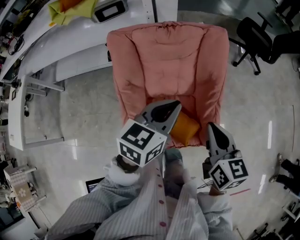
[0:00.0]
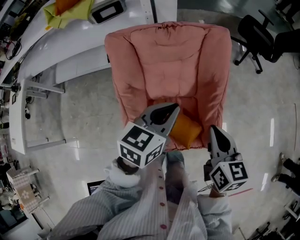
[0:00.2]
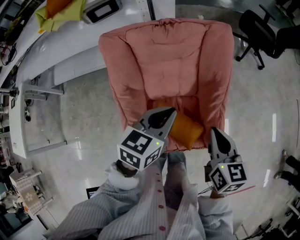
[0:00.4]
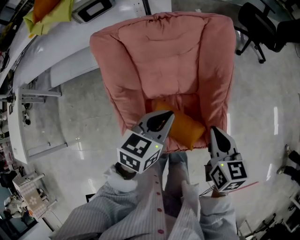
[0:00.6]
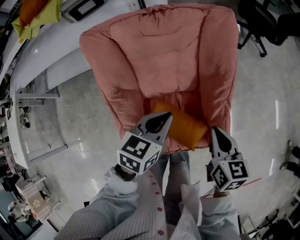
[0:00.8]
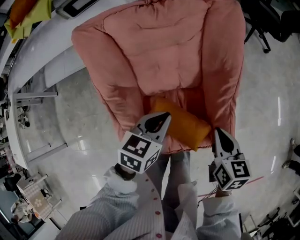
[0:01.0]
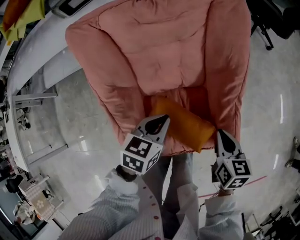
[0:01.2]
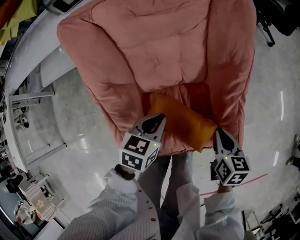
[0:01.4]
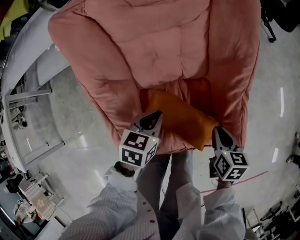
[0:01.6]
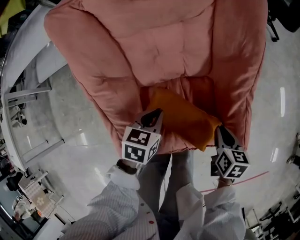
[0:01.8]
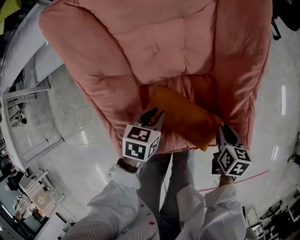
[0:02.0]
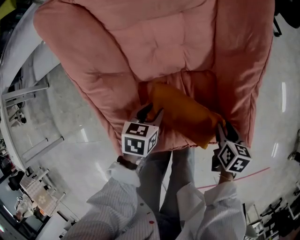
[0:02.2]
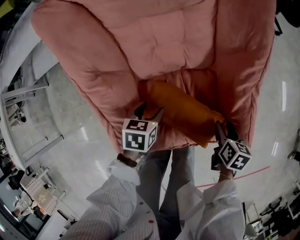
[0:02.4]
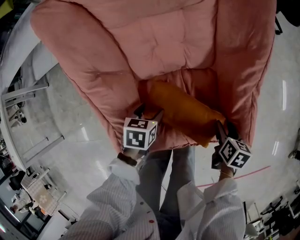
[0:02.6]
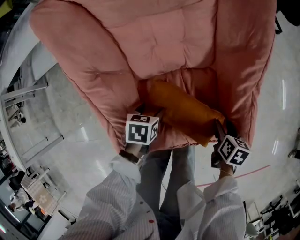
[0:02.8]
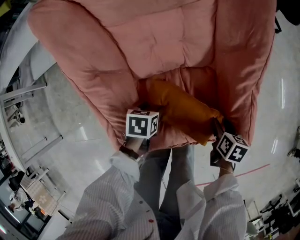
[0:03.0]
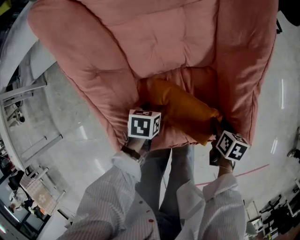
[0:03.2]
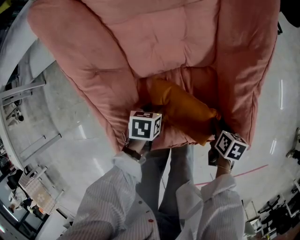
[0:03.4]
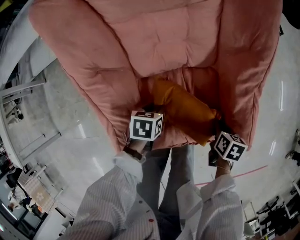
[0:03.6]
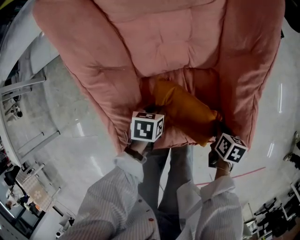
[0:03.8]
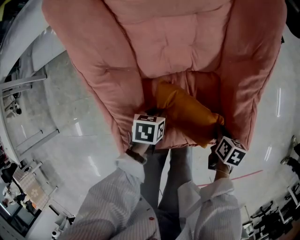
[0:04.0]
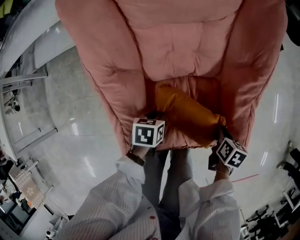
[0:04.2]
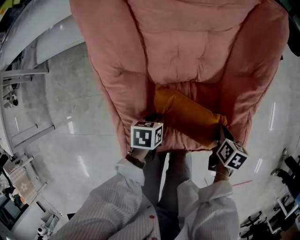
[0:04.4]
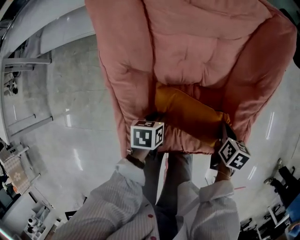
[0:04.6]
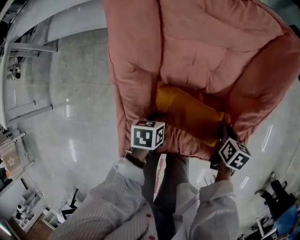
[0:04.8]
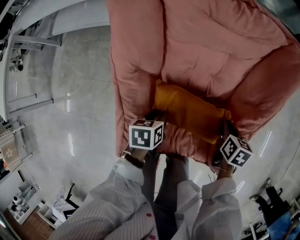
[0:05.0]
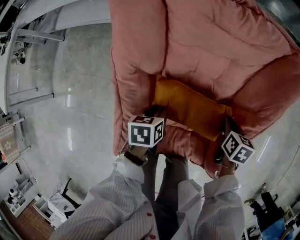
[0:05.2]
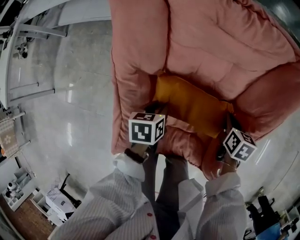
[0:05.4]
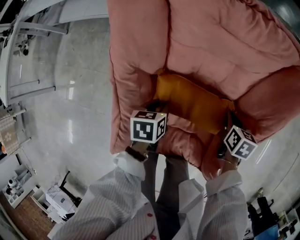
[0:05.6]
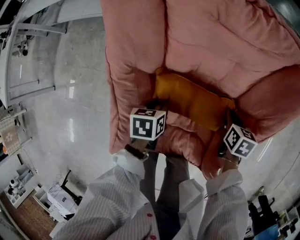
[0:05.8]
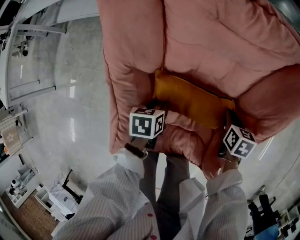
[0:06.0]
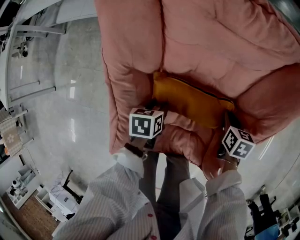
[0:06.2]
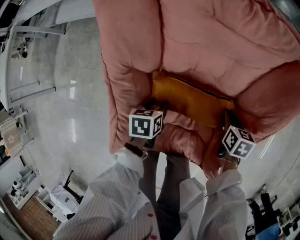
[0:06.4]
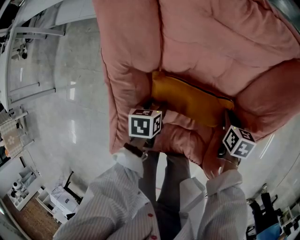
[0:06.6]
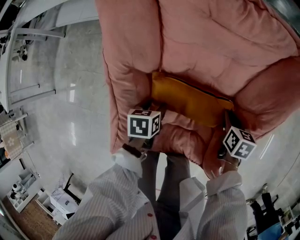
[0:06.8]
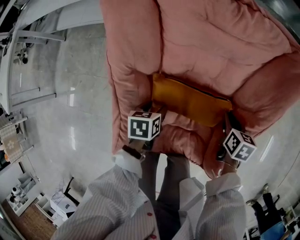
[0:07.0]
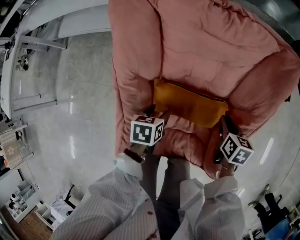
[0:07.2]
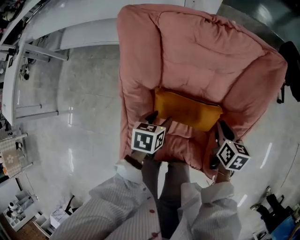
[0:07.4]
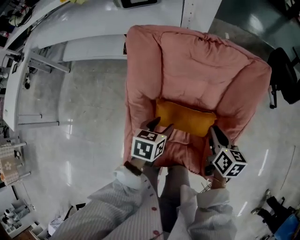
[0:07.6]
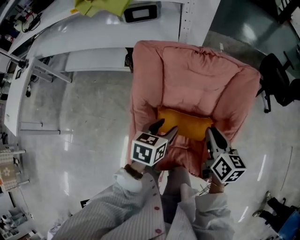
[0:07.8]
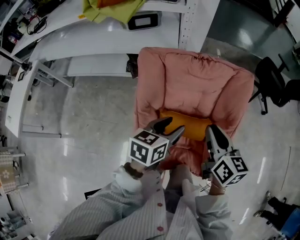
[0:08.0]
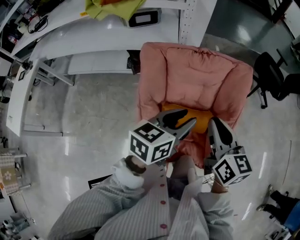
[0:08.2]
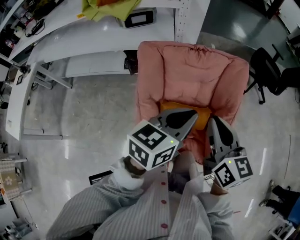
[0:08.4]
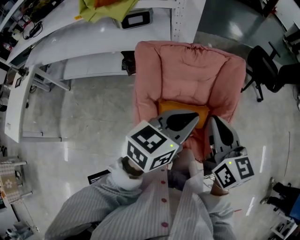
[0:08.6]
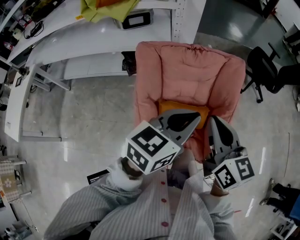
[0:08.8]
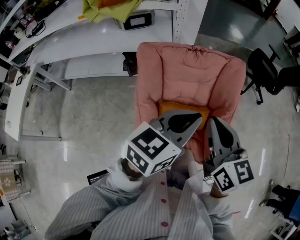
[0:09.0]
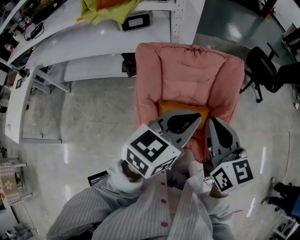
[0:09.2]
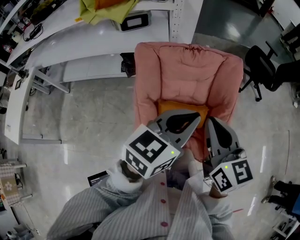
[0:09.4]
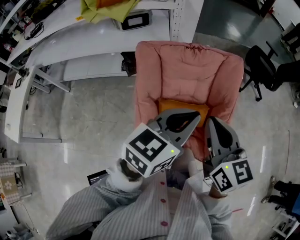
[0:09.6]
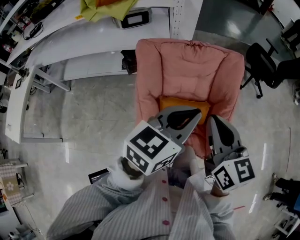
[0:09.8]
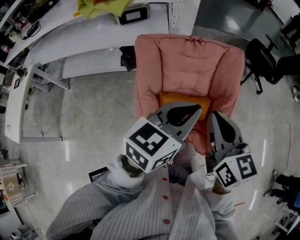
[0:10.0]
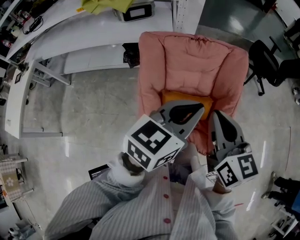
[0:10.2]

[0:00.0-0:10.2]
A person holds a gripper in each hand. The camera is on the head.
0:00.0 to 0:01.4: The grippers both shift downward by approximately 30 cm. The left gripper turns by some 20 degrees; the right gripper turns by some 30 degrees.
0:01.4 to 0:03.0: The two grippers go about 15 cm downward. The left gripper changes its angle by some 30 degrees, and opens its fingers; the right gripper rotates approximately 20 degrees, and opens its fingers.
0:03.0 to 0:04.4: The left gripper closes. Meanwhile the right gripper travels upward and forward by roughly 10 cm, and closes its fingers.
0:04.4 to 0:05.8: The left gripper shifts about 10 cm forward, while the right gripper travels forward by roughly 20 cm, and turns by approximately 30 degrees.
0:05.8 to 0:07.2: The left gripper shifts by about 5 cm, and opens. The right gripper travels upward by some 5 cm.
0:07.2 to 0:08.8: The grippers both shift upward by about 40 cm. The right gripper angles its fingers upward, by about 40 degrees. The left gripper tilts its fingers some 50 degrees upward, and closes its fingers.
0:08.8 to 0:10.2: The grippers stay close to where they were, moving slightly.

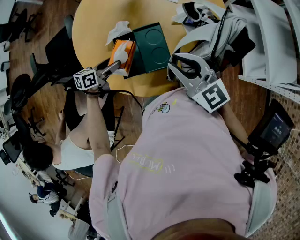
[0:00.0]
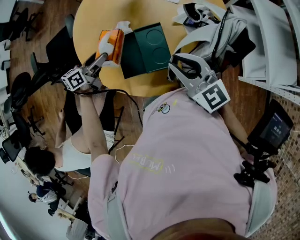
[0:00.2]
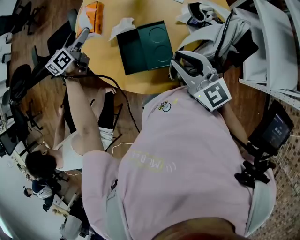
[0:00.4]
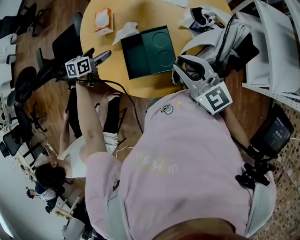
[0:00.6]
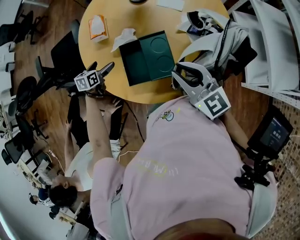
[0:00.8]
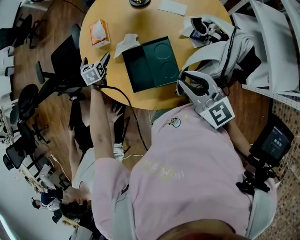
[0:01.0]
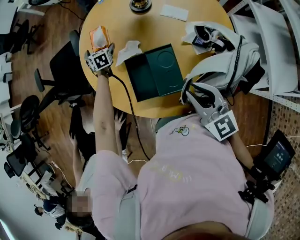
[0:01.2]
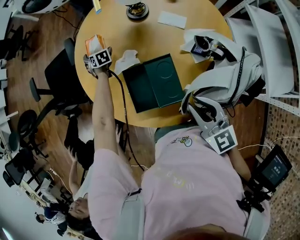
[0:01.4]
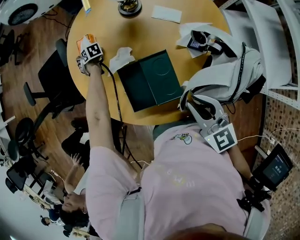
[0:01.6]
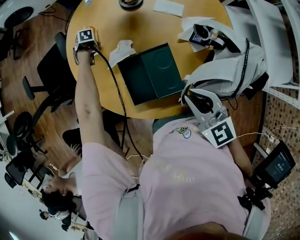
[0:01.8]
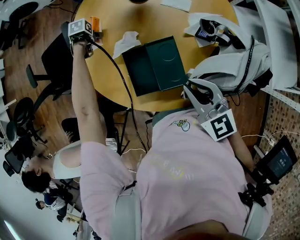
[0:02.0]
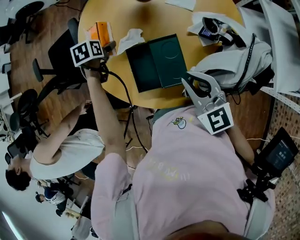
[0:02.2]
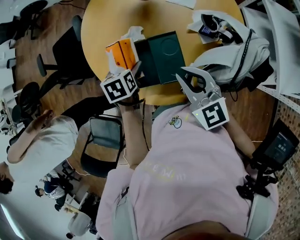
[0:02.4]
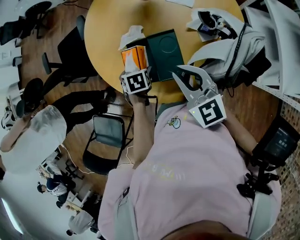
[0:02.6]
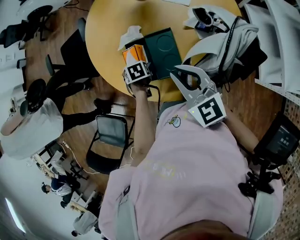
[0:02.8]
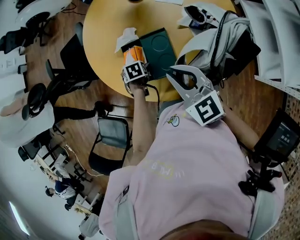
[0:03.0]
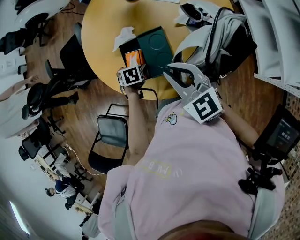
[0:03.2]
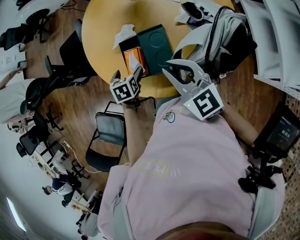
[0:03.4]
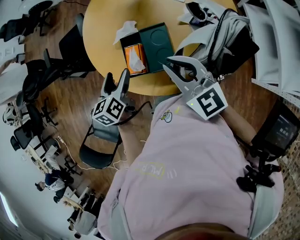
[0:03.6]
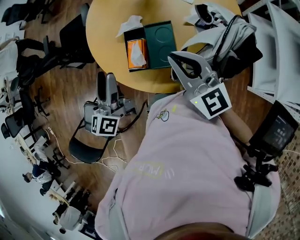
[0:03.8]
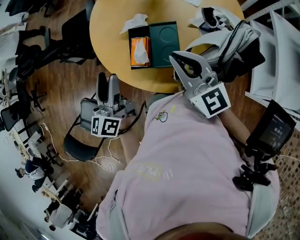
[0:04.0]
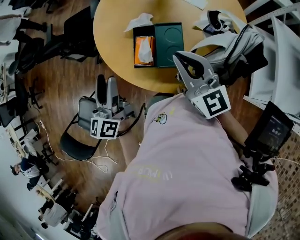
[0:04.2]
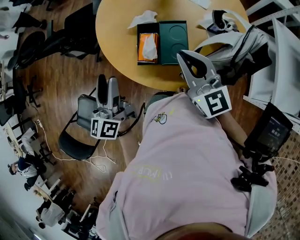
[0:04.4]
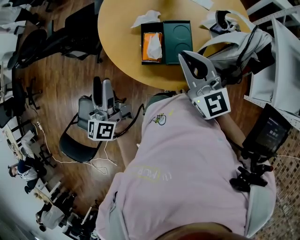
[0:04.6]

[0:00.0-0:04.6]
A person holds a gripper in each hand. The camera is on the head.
0:00.0 to 0:01.6: The left gripper changes place by approximately 40 cm, angles its fingers downward, by roughly 30 degrees, and opens up.
0:01.6 to 0:03.0: The left gripper moves roughly 20 cm upward and comes back.
0:03.0 to 0:04.6: The right gripper ends up roughly 10 cm from where it was; the left gripper is displaced upward by approximately 30 cm, and points its fingers about 80 degrees further upward.

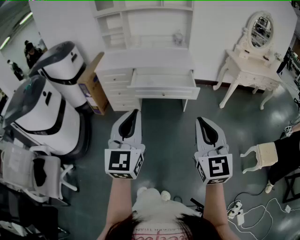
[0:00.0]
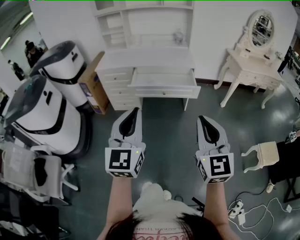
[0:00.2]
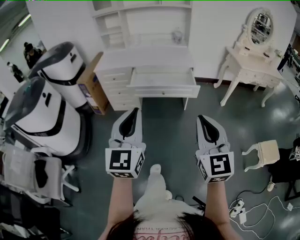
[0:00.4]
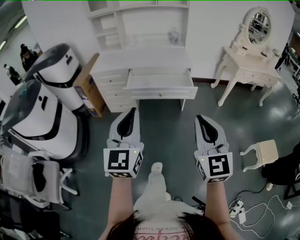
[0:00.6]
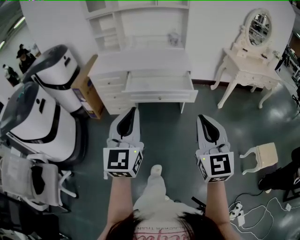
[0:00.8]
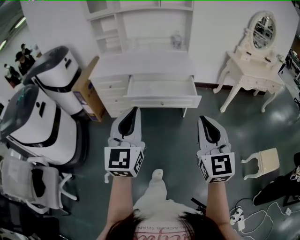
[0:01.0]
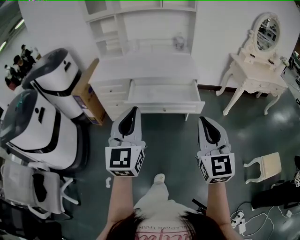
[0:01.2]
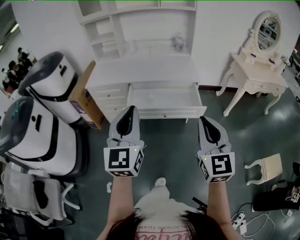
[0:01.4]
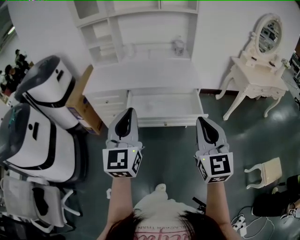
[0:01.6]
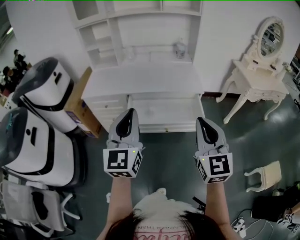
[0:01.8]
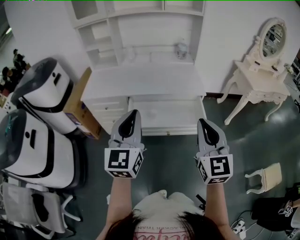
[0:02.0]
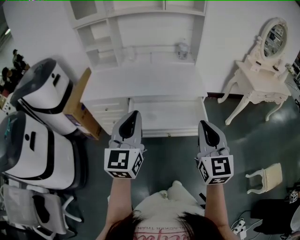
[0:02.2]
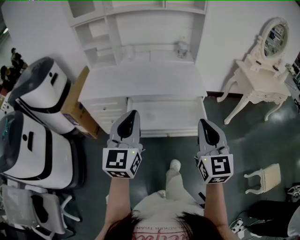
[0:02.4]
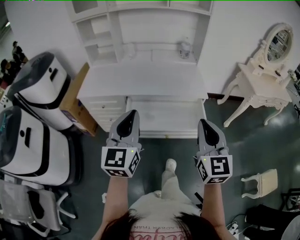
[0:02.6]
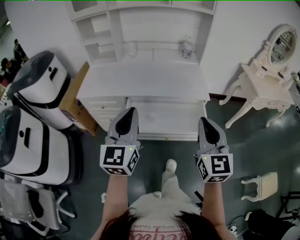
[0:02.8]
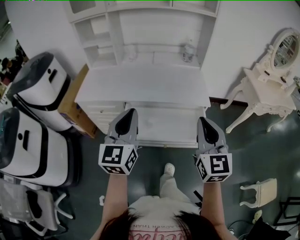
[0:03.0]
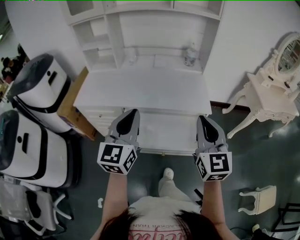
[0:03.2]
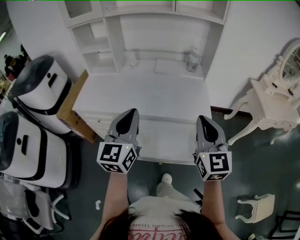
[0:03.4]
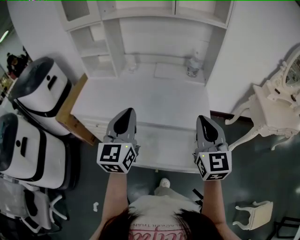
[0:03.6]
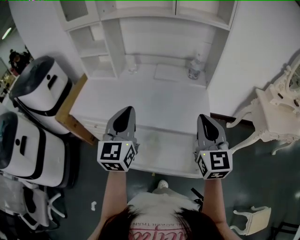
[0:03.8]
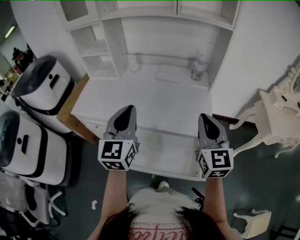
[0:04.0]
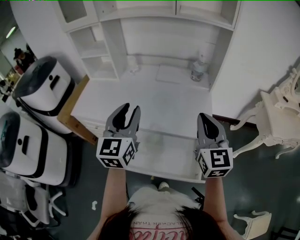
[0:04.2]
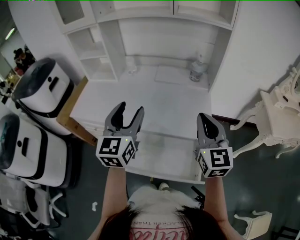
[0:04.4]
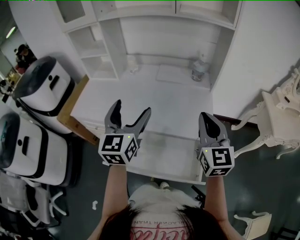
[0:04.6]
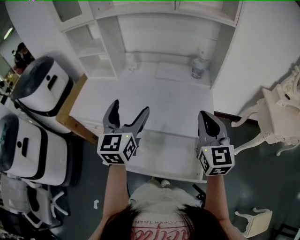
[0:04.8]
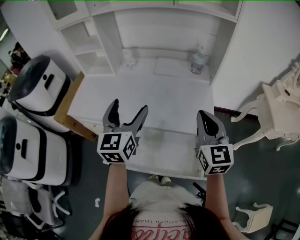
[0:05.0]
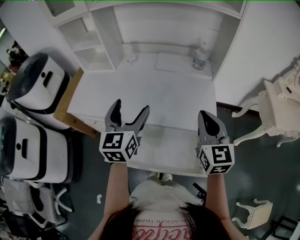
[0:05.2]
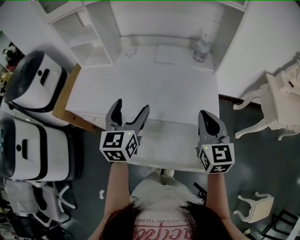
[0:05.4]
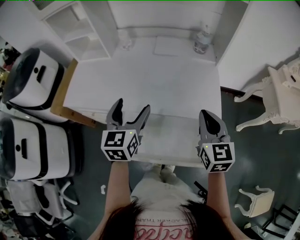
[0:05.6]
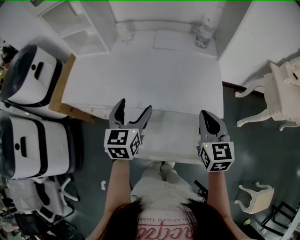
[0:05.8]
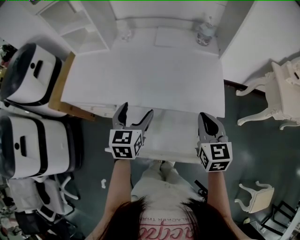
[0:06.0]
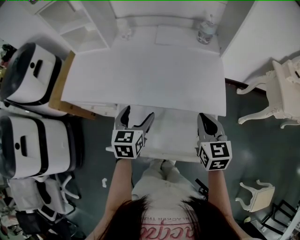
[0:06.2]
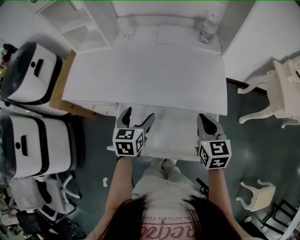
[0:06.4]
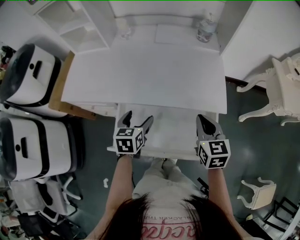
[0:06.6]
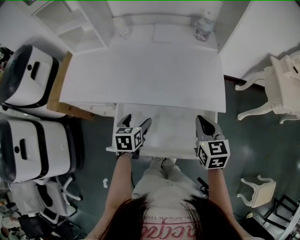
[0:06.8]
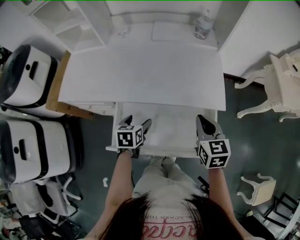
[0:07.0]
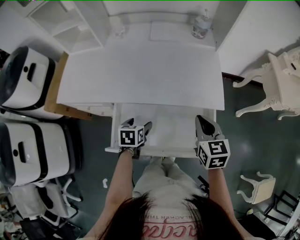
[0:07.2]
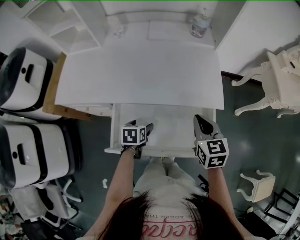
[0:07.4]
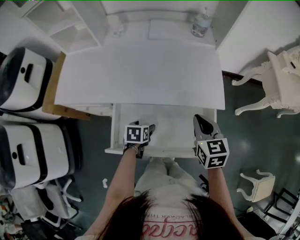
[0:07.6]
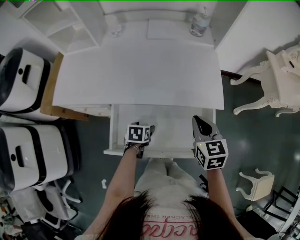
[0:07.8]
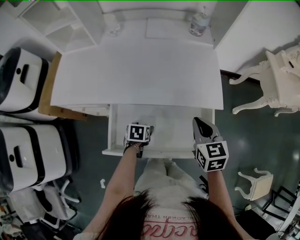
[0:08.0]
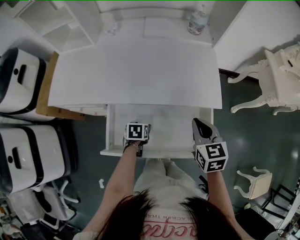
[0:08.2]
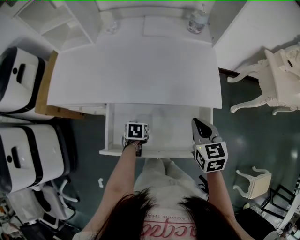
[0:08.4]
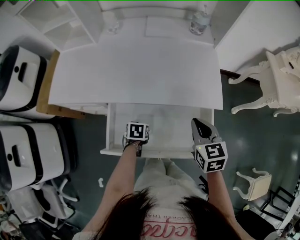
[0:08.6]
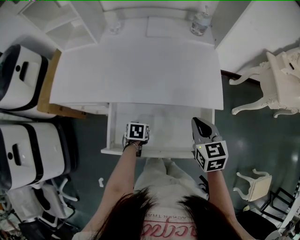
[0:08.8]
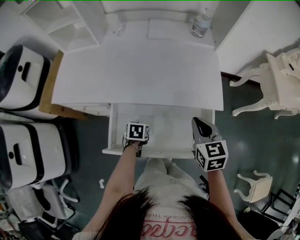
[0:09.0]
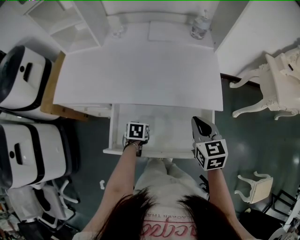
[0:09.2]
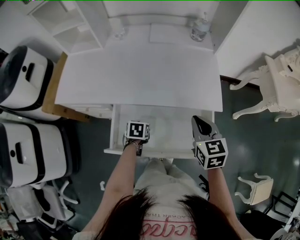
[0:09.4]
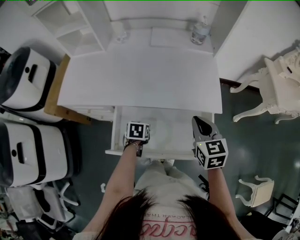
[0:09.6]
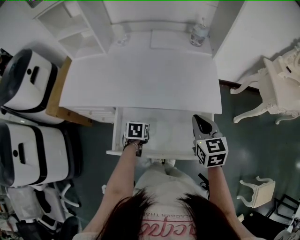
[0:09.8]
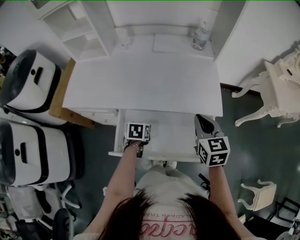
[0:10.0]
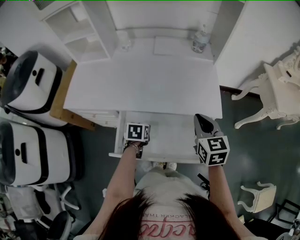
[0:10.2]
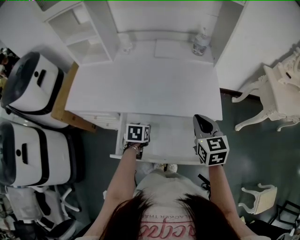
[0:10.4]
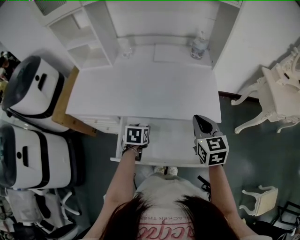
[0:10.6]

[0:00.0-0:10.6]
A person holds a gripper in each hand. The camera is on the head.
0:00.0 to 0:01.6: Both grippers move forward, roughly 30 cm.
0:01.6 to 0:03.0: Both grippers travel together forward, some 20 cm.
0:03.0 to 0:04.6: Both grippers travel together forward, approximately 20 cm. The left gripper opens its fingers.
0:04.6 to 0:06.0: Both grippers move downward, some 15 cm. The left gripper changes its angle by roughly 30 degrees, while the right gripper turns by roughly 20 degrees.
0:06.0 to 0:07.6: The left gripper is displaced downward by approximately 20 cm, and tilts its fingers about 30 degrees downward; the right gripper travels downward by approximately 5 cm.
0:07.6 to 0:09.0: The left gripper closes.
0:09.0 to 0:10.6: The right gripper moves upward, approximately 5 cm, while the left gripper shifts some 10 cm upward.
